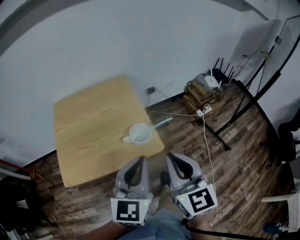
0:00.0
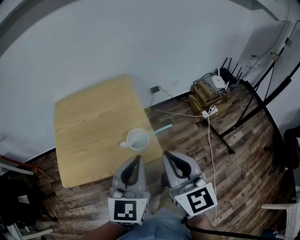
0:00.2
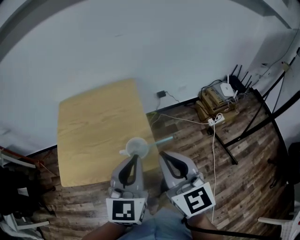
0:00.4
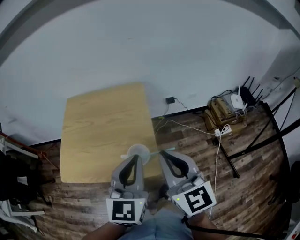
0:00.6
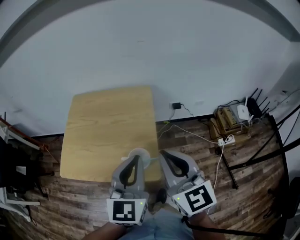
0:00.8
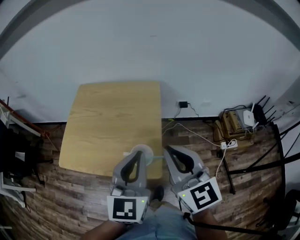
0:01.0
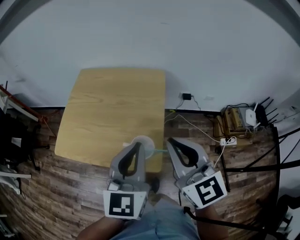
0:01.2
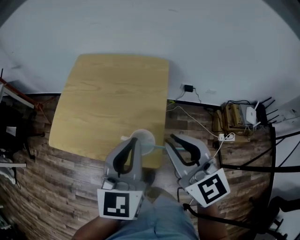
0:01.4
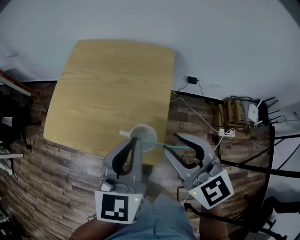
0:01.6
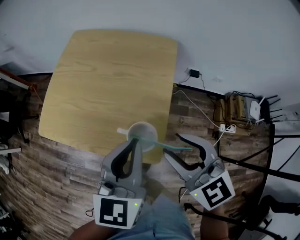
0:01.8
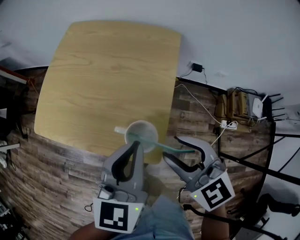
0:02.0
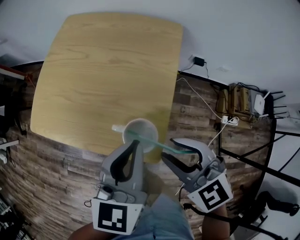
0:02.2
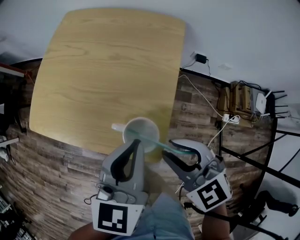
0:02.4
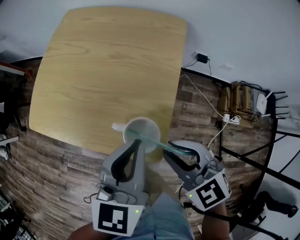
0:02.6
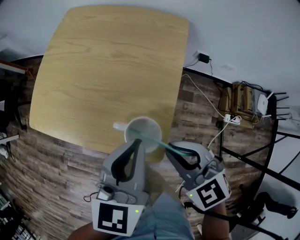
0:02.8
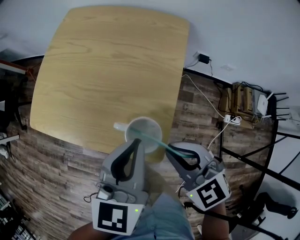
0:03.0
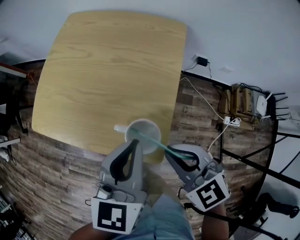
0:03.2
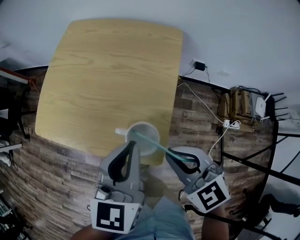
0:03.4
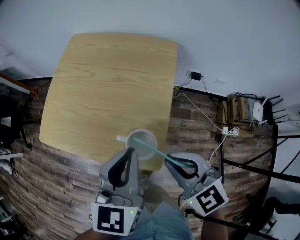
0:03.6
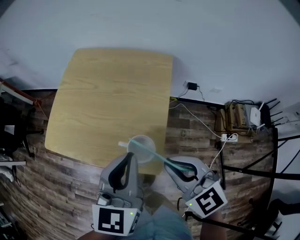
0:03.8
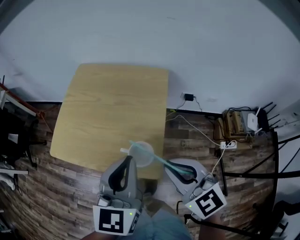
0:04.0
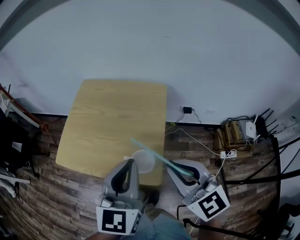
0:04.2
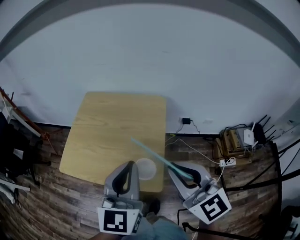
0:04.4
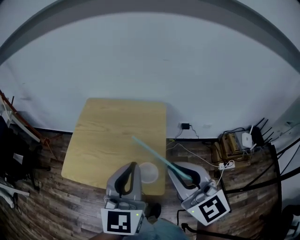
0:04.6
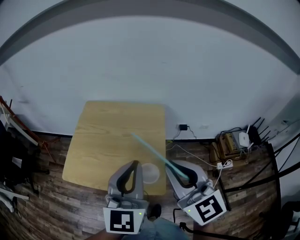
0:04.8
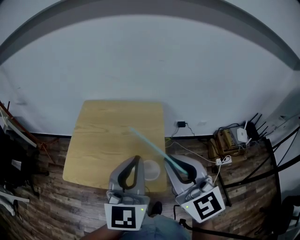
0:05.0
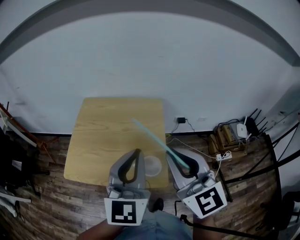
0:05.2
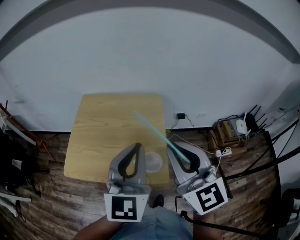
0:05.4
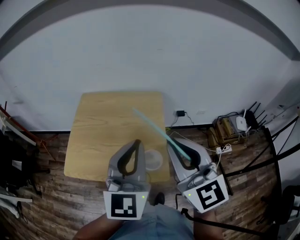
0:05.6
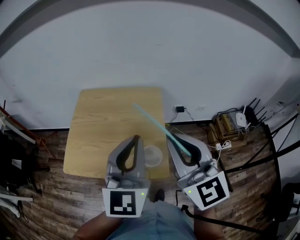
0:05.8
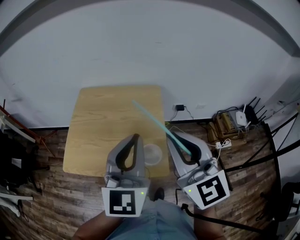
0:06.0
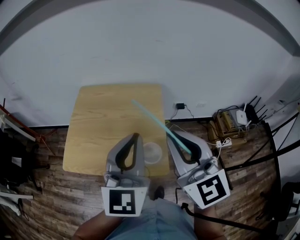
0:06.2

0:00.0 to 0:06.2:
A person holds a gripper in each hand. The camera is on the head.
0:00.0 to 0:01.6: The right gripper changes place by about 20 cm, changes its angle by approximately 50 degrees, and opens. Meanwhile the left gripper shifts by some 15 cm, and swivels about 30 degrees.
0:01.6 to 0:03.2: The right gripper heads downward, covering roughly 10 cm, swivels approximately 20 degrees, and closes its fingers. Meanwhile the left gripper shifts about 5 cm downward.
0:03.2 to 0:04.6: Both grippers move upward, some 20 cm. The right gripper turns by about 40 degrees; the left gripper changes its angle by about 30 degrees.
0:04.6 to 0:06.2: There are only small adjustments of the grippers.

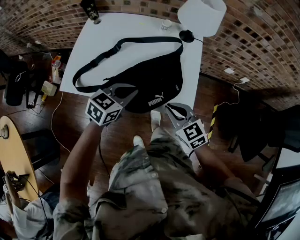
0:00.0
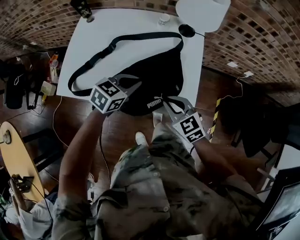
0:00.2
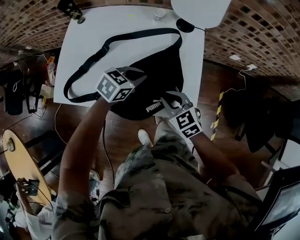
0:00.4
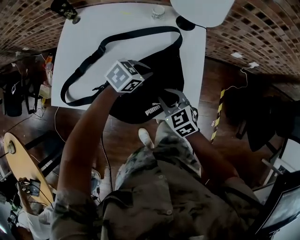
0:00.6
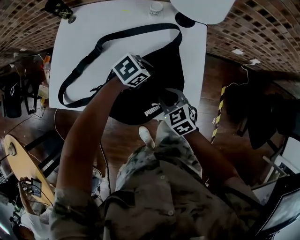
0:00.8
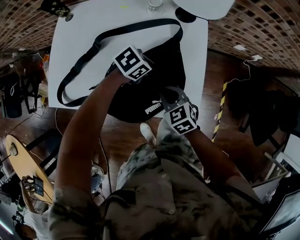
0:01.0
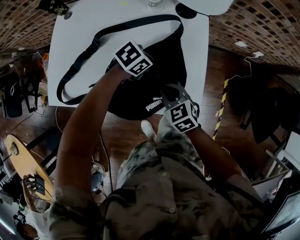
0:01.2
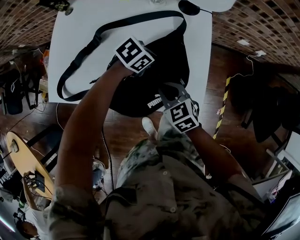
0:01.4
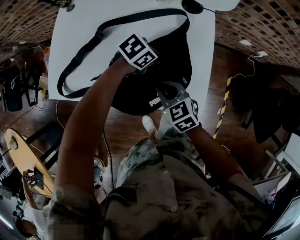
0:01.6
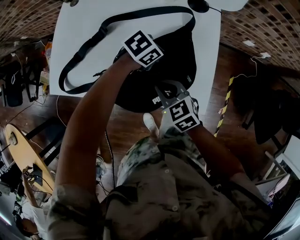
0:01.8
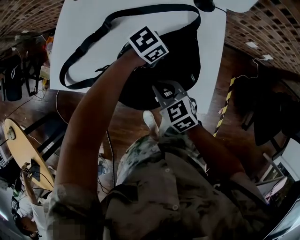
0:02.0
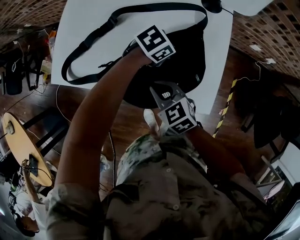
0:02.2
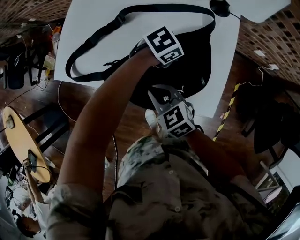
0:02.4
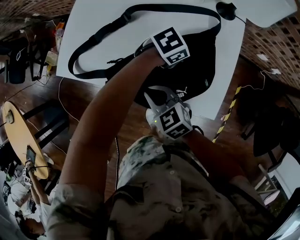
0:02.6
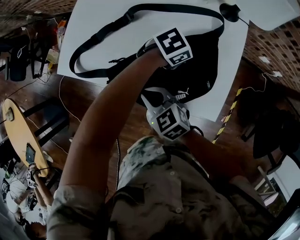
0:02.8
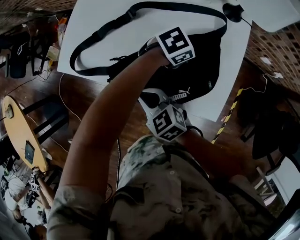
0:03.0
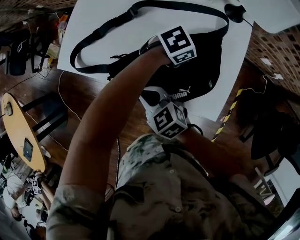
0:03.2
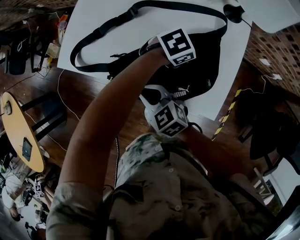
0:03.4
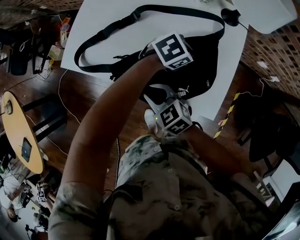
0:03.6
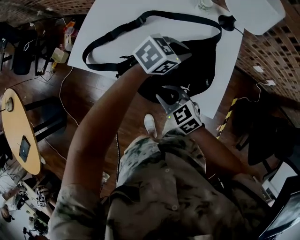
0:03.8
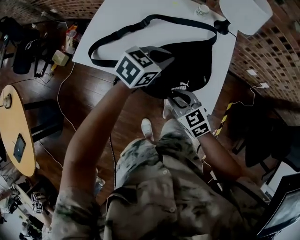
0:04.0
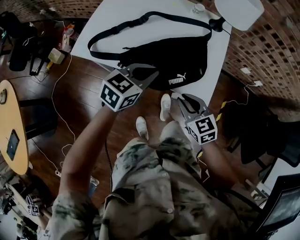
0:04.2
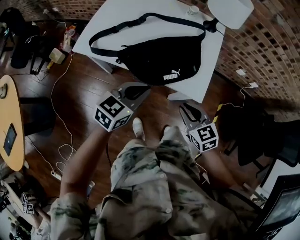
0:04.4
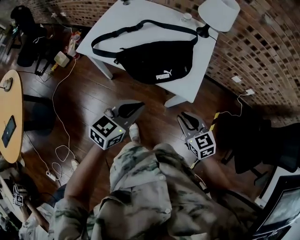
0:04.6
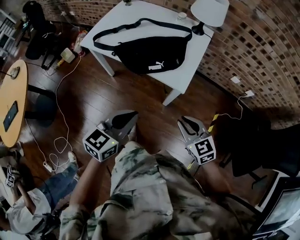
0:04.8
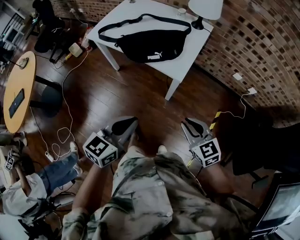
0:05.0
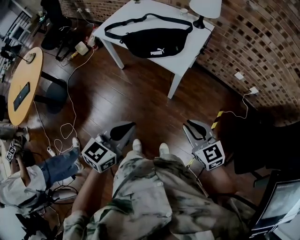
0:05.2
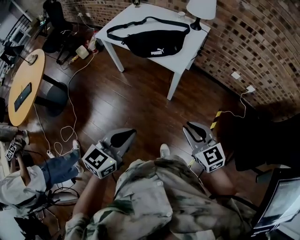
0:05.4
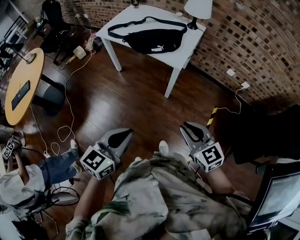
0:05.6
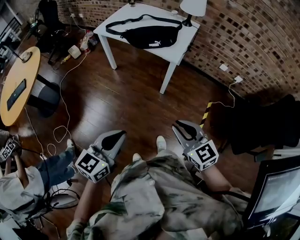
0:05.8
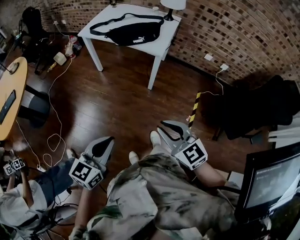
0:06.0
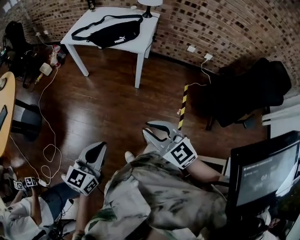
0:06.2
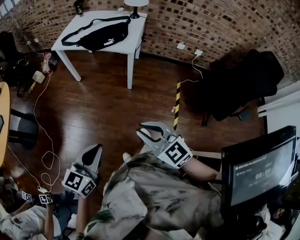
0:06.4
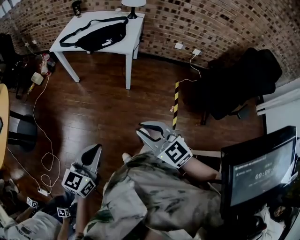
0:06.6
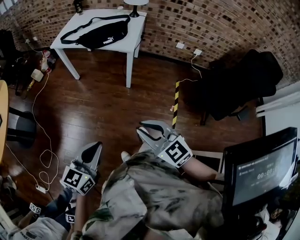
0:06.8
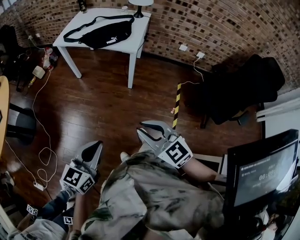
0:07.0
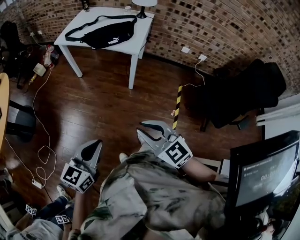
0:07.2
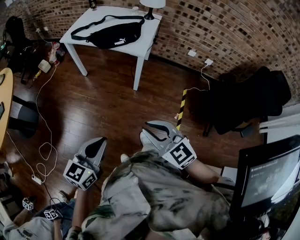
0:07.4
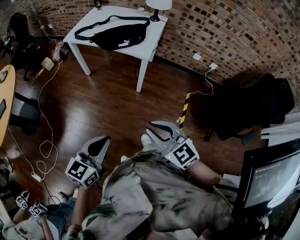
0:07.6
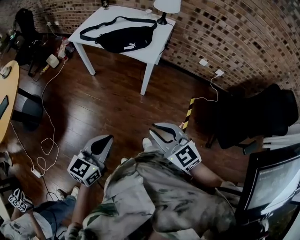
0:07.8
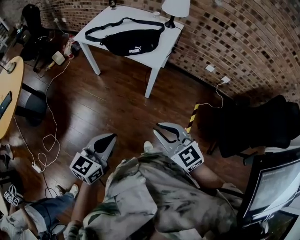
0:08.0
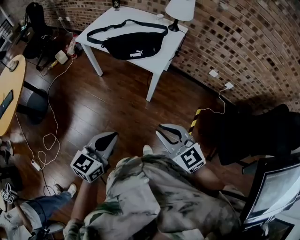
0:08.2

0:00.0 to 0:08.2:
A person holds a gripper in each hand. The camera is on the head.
0:00.0 to 0:01.6: The right gripper is displaced downward by roughly 10 cm, while the left gripper changes place by about 25 cm, and swivels some 40 degrees.
0:01.6 to 0:03.2: The right gripper moves some 15 cm, and rotates some 20 degrees.
0:03.2 to 0:05.0: The left gripper moves some 60 cm, and turns by approximately 60 degrees. The right gripper changes place by about 50 cm.
0:05.0 to 0:06.6: The two grippers go some 35 cm backward.
0:06.6 to 0:08.2: Both grippers travel together forward, about 20 cm.

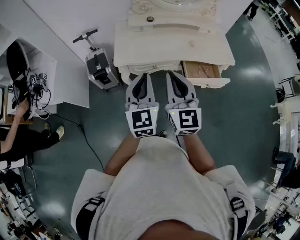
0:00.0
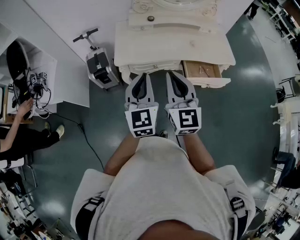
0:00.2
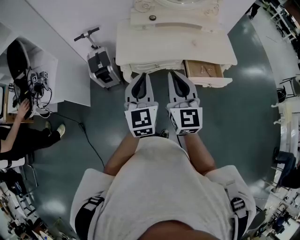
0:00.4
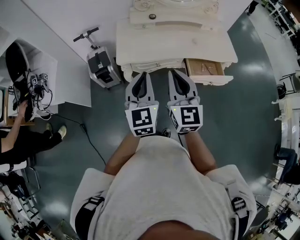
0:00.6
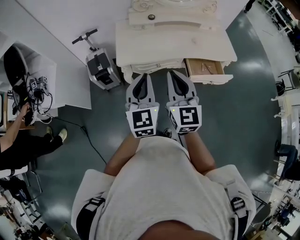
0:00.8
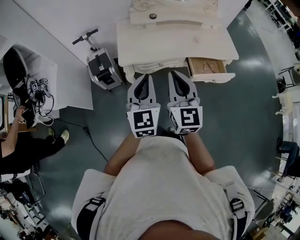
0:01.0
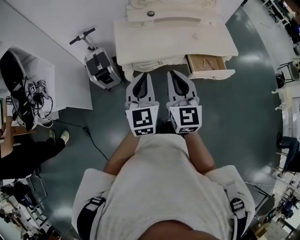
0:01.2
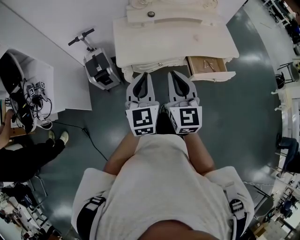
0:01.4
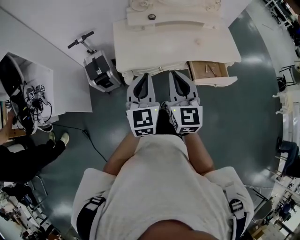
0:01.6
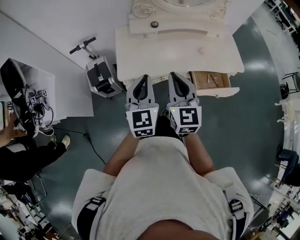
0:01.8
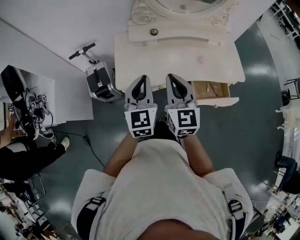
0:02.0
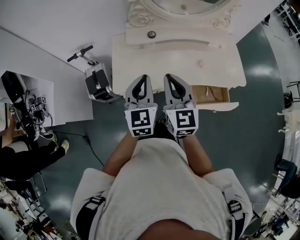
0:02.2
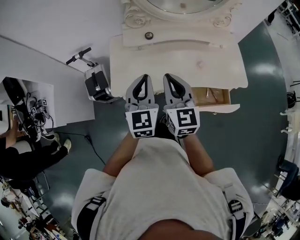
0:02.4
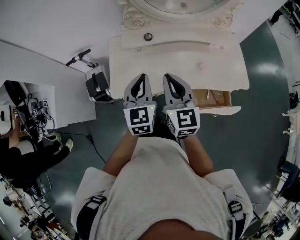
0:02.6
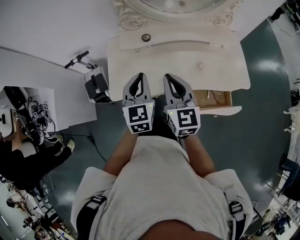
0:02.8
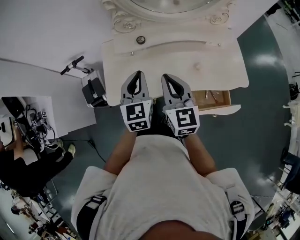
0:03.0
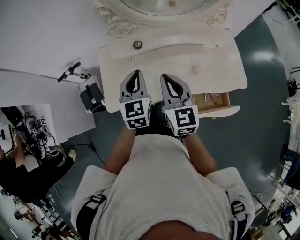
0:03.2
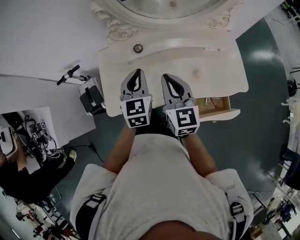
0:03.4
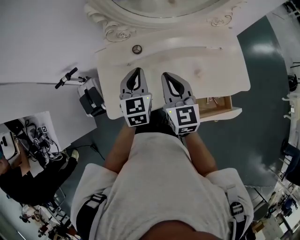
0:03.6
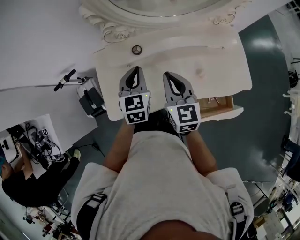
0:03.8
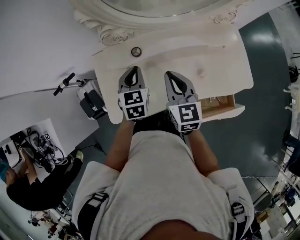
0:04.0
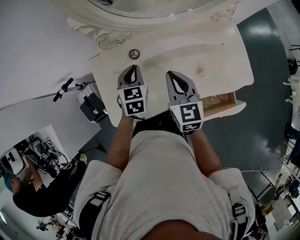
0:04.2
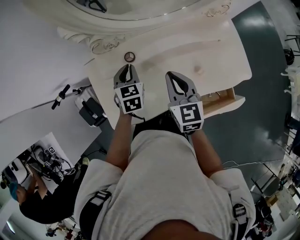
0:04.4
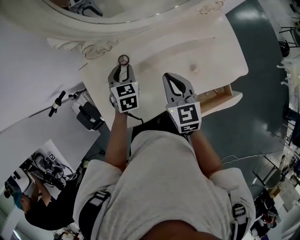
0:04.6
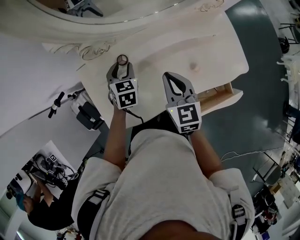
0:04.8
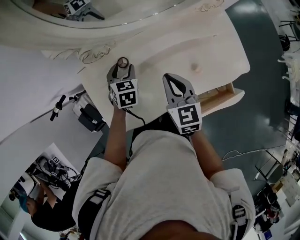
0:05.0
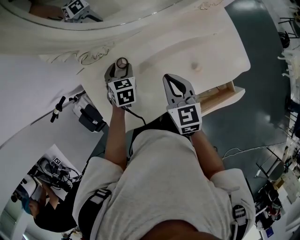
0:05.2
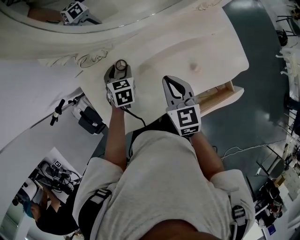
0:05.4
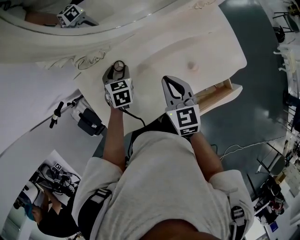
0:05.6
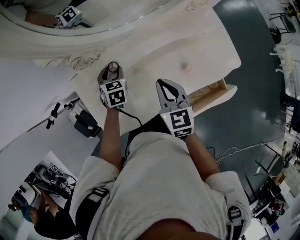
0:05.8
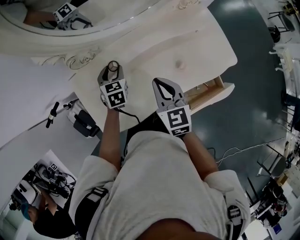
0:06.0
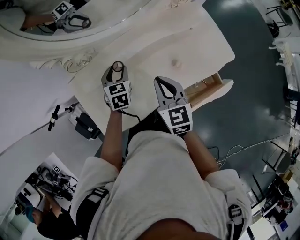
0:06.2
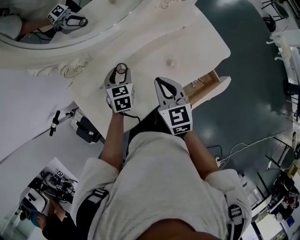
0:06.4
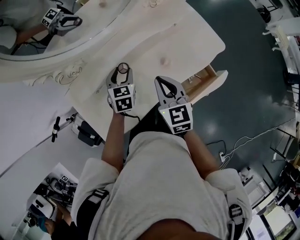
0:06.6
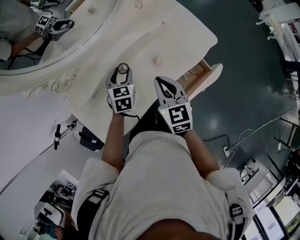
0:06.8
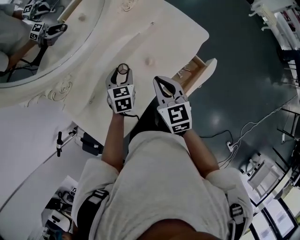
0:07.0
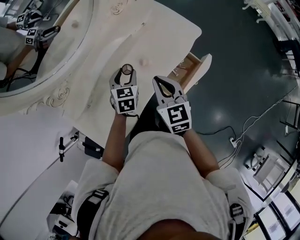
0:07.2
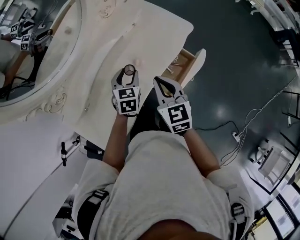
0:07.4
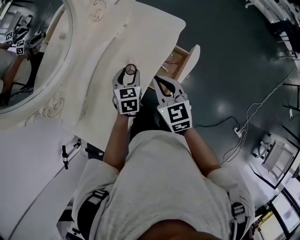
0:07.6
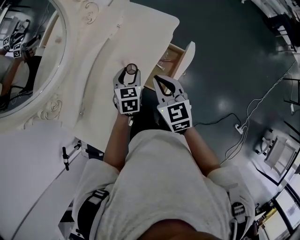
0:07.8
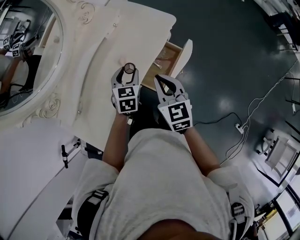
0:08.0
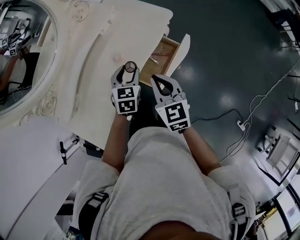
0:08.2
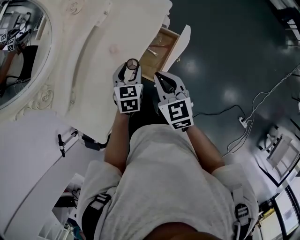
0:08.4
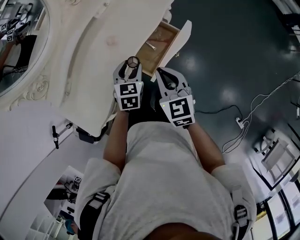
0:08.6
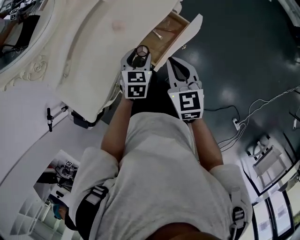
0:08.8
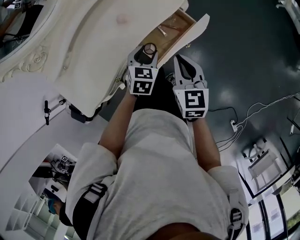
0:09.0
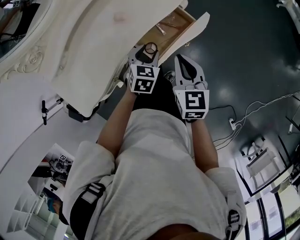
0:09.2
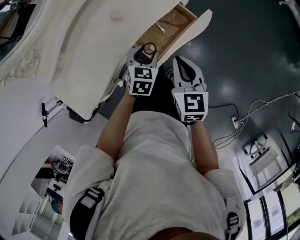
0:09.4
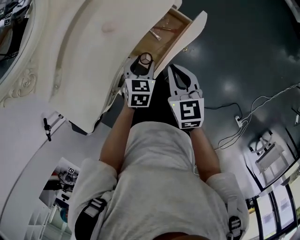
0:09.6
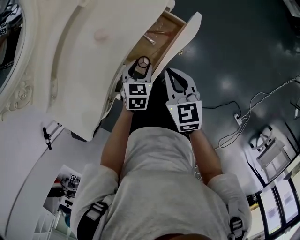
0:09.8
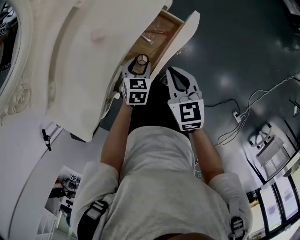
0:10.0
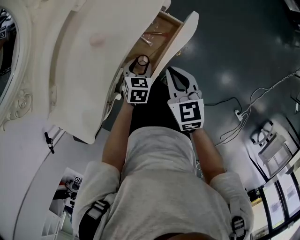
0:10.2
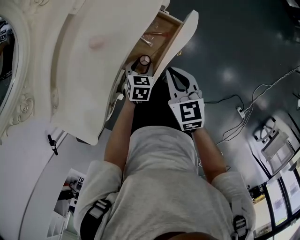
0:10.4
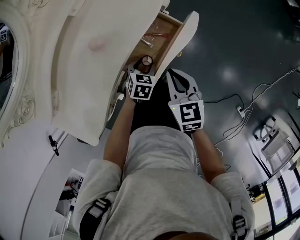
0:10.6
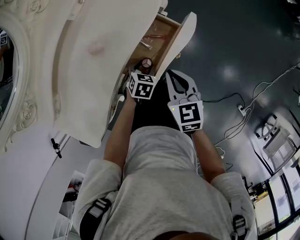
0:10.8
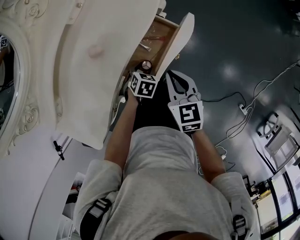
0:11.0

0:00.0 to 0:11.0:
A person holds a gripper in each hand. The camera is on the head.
0:00.0 to 0:01.6: Both grippers move forward, about 10 cm.
0:01.6 to 0:03.2: The grippers both shift forward and to the right by about 30 cm.
0:03.2 to 0:04.8: The right gripper shifts about 15 cm forward and downward, and rotates roughly 20 degrees. Meanwhile the left gripper shifts about 25 cm forward and downward, swivels roughly 30 degrees, and opens its fingers.
0:04.8 to 0:06.2: The left gripper shifts approximately 5 cm to the right. The right gripper ends up roughly 5 cm from where it was.
0:06.2 to 0:07.8: The left gripper changes place by roughly 30 cm, and turns by roughly 40 degrees; the right gripper shifts by roughly 25 cm, and swivels some 30 degrees.
0:07.8 to 0:09.4: Both grippers travel together downward, to the right and backward, some 20 cm.
0:09.4 to 0:11.0: The right gripper goes roughly 5 cm downward, while the left gripper shifts roughly 15 cm downward, and swivels roughly 30 degrees.
